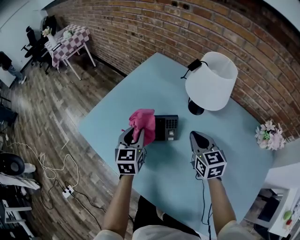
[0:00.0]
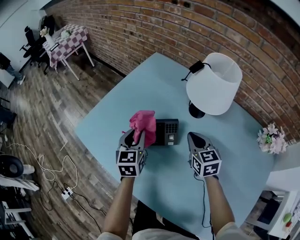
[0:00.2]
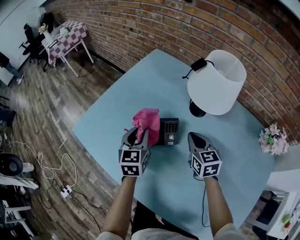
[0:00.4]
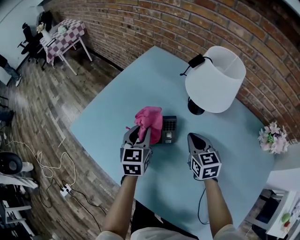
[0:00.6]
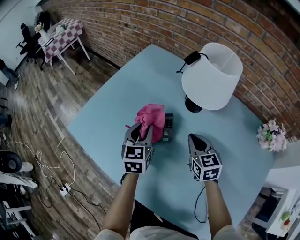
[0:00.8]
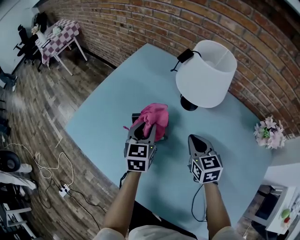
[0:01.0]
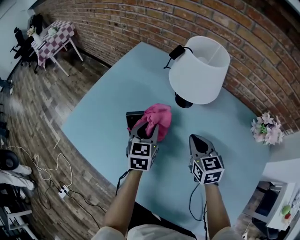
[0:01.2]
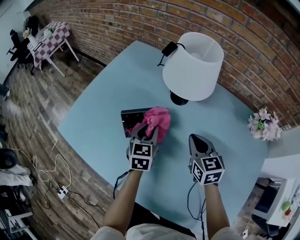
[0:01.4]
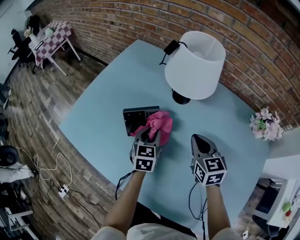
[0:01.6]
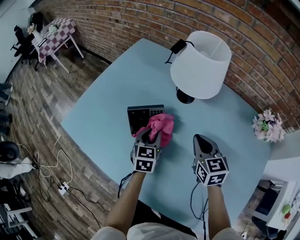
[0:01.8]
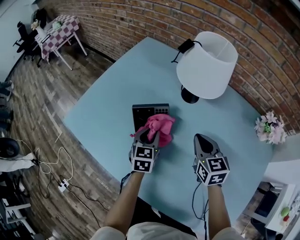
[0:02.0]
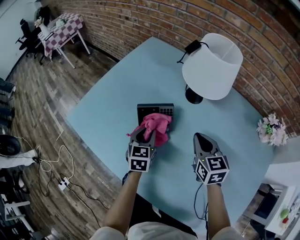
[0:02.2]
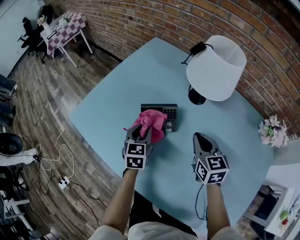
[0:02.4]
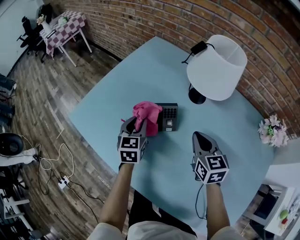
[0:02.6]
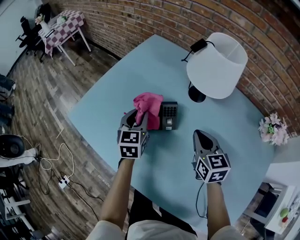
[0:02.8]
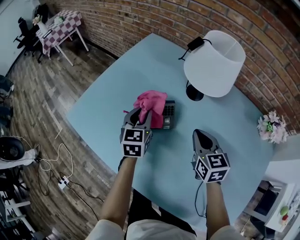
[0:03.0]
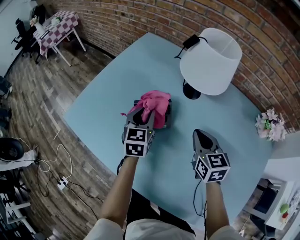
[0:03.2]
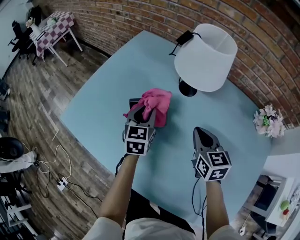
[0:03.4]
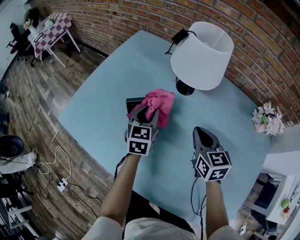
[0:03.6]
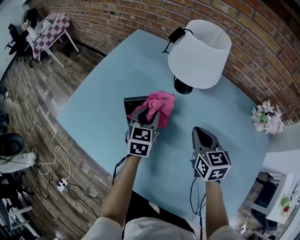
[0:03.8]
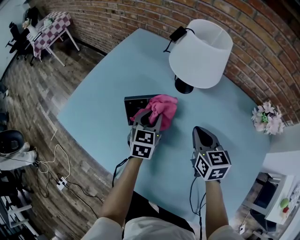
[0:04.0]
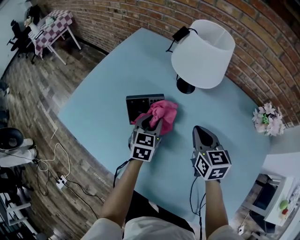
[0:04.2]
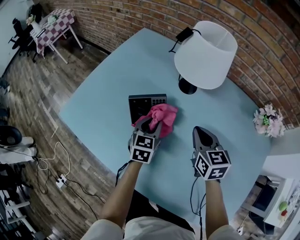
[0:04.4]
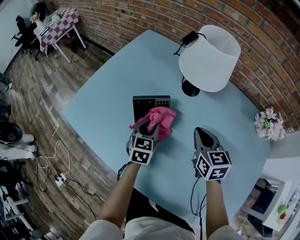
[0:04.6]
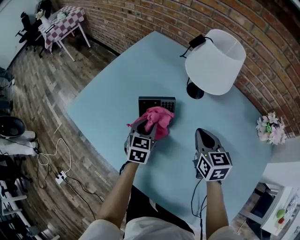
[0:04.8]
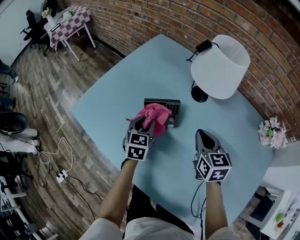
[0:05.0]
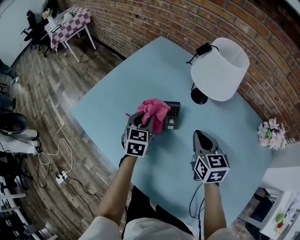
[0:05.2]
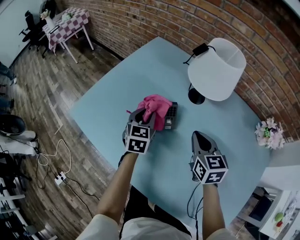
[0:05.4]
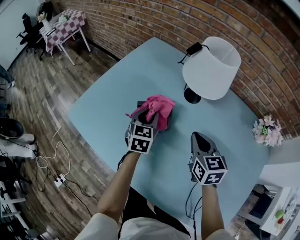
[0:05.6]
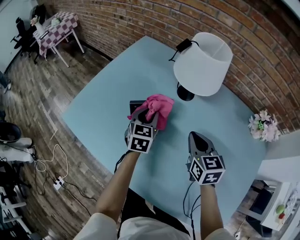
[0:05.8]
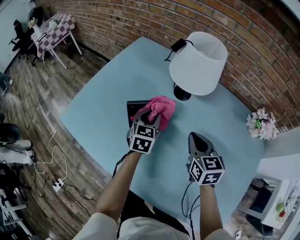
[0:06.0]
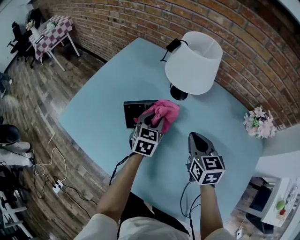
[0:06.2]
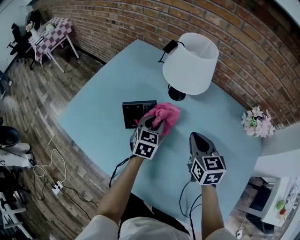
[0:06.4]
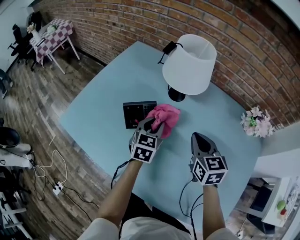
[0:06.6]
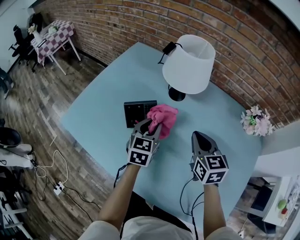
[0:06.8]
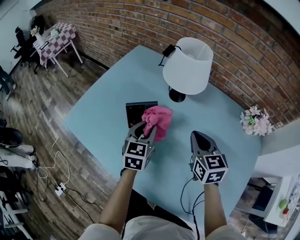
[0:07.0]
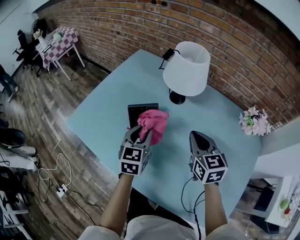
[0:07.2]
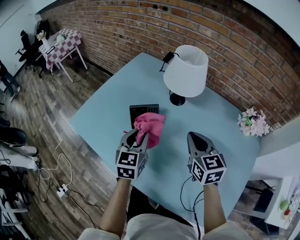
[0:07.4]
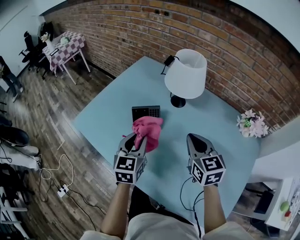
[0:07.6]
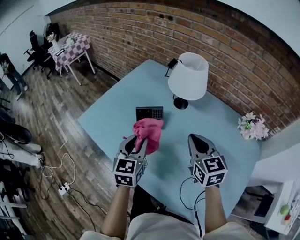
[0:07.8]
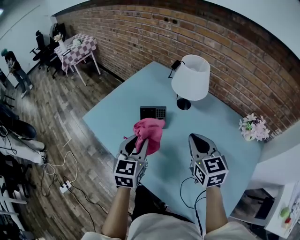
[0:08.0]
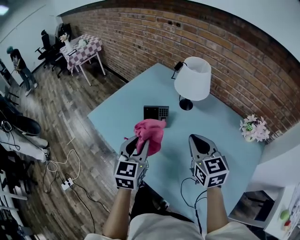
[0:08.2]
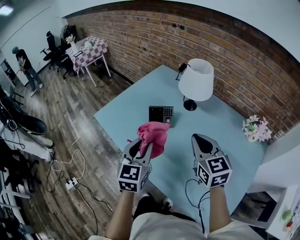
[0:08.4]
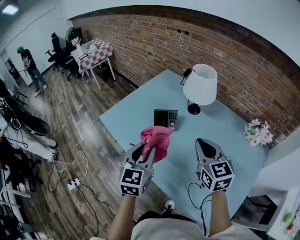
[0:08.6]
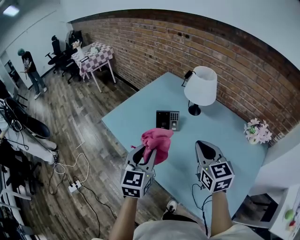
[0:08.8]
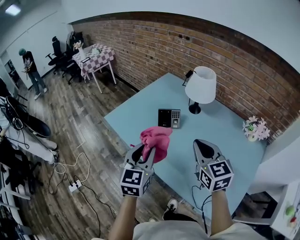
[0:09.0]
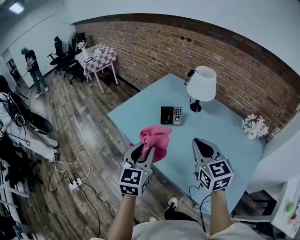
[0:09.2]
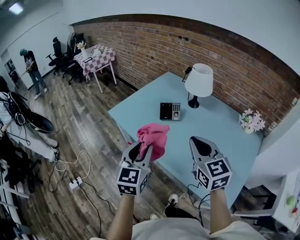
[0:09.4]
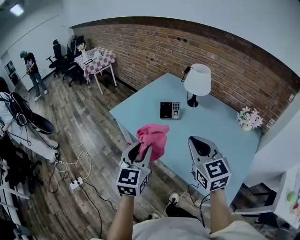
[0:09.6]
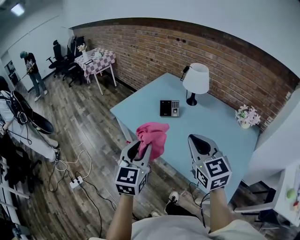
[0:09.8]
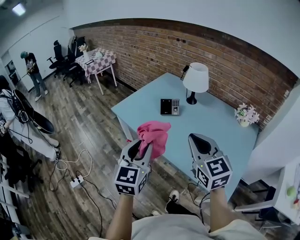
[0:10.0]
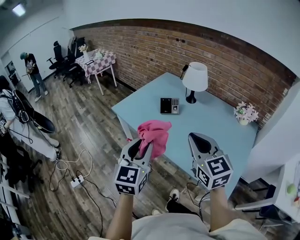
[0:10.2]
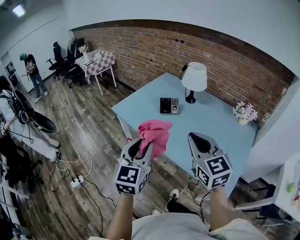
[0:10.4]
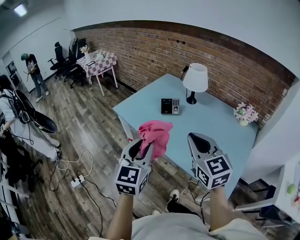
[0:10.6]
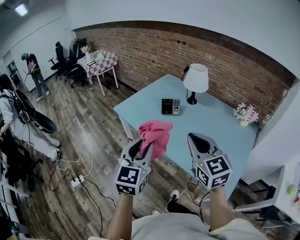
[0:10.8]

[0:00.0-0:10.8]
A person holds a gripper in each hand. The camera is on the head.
0.0 to 1.6 s: The right gripper is displaced to the right by roughly 10 cm. Meanwhile the left gripper travels to the right and downward by about 20 cm.
1.6 to 3.0 s: The right gripper is displaced to the left by about 5 cm. The left gripper is displaced to the left and upward by roughly 10 cm.
3.0 to 4.6 s: The left gripper travels downward and to the right by about 10 cm.
4.6 to 6.2 s: The left gripper moves to the right, roughly 5 cm.
6.2 to 7.8 s: The right gripper shifts approximately 15 cm upward and backward. The left gripper goes roughly 25 cm backward, upward and to the left.
7.8 to 9.2 s: The grippers both shift backward, upward and to the left by about 25 cm.
9.2 to 10.8 s: Both grippers move backward, about 15 cm.

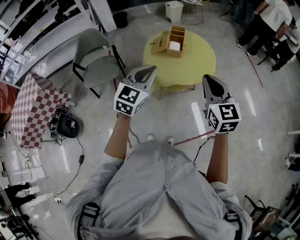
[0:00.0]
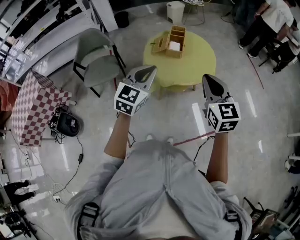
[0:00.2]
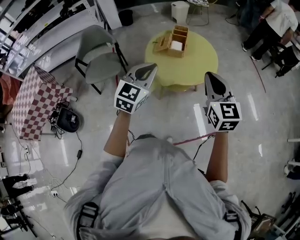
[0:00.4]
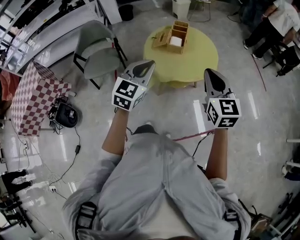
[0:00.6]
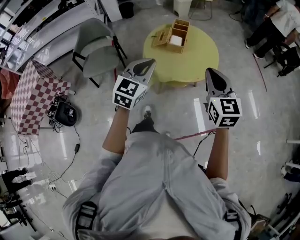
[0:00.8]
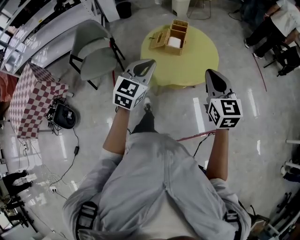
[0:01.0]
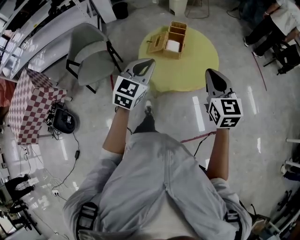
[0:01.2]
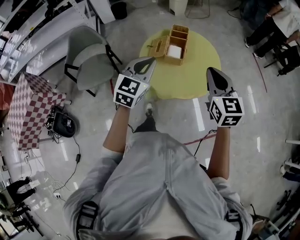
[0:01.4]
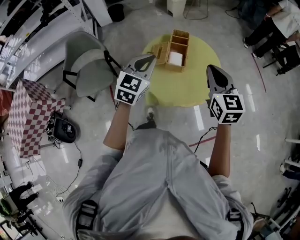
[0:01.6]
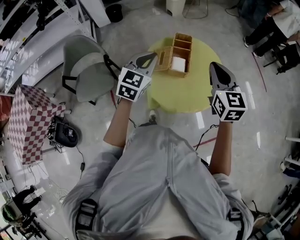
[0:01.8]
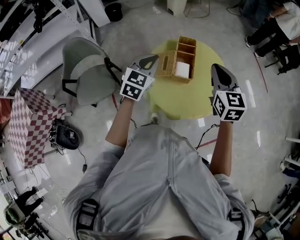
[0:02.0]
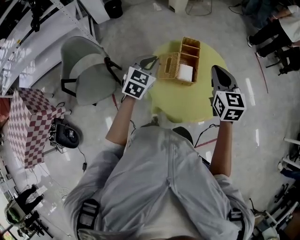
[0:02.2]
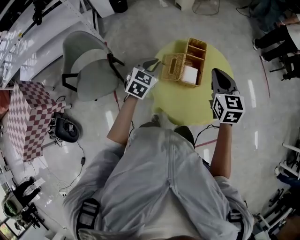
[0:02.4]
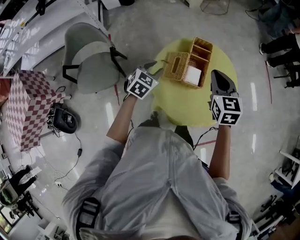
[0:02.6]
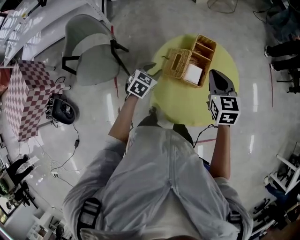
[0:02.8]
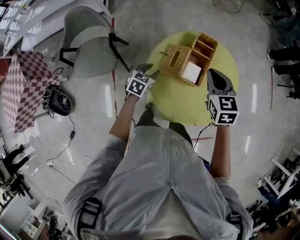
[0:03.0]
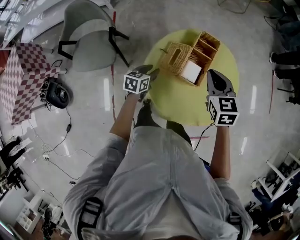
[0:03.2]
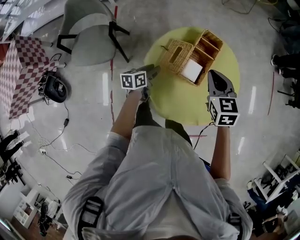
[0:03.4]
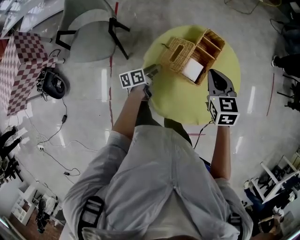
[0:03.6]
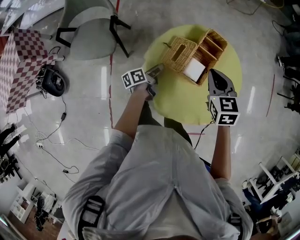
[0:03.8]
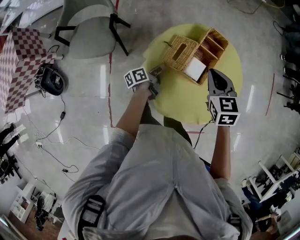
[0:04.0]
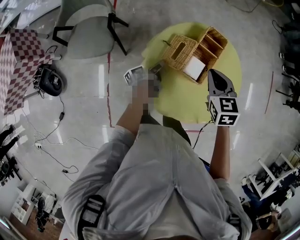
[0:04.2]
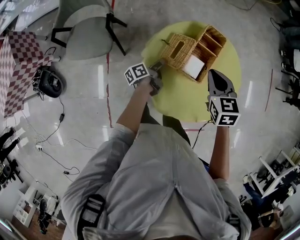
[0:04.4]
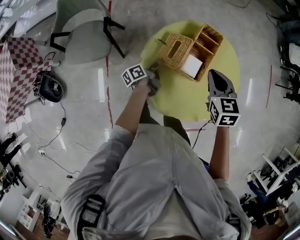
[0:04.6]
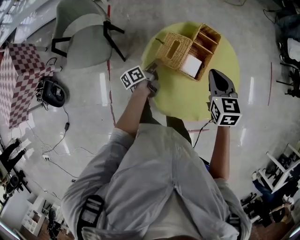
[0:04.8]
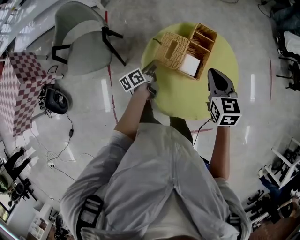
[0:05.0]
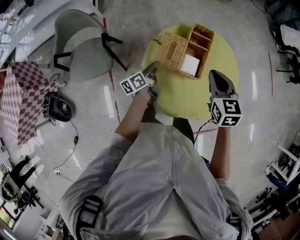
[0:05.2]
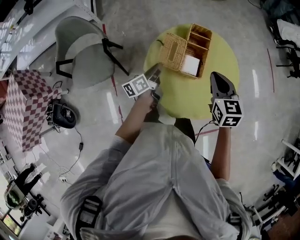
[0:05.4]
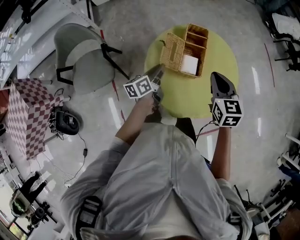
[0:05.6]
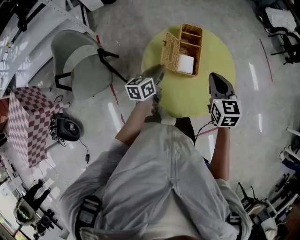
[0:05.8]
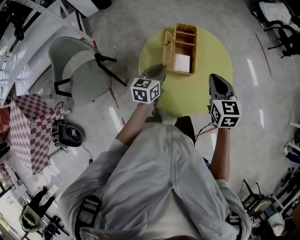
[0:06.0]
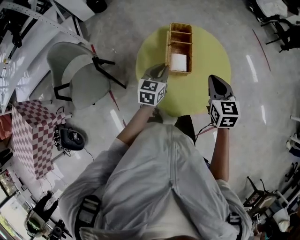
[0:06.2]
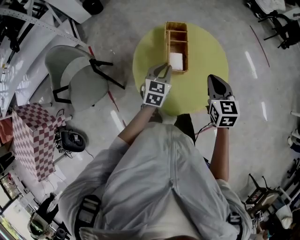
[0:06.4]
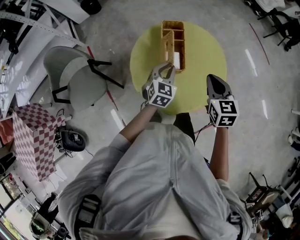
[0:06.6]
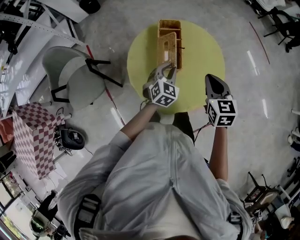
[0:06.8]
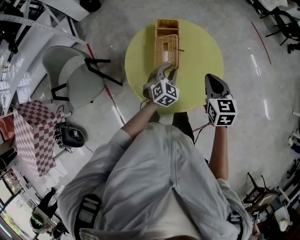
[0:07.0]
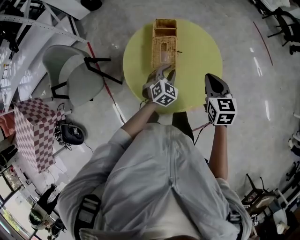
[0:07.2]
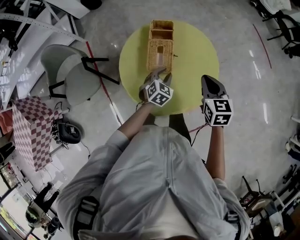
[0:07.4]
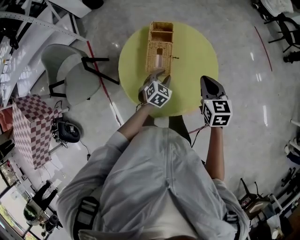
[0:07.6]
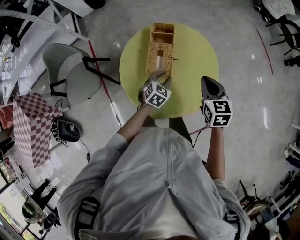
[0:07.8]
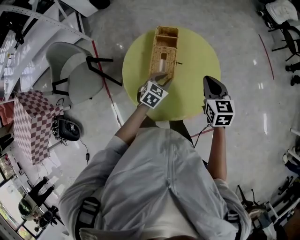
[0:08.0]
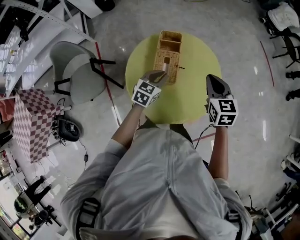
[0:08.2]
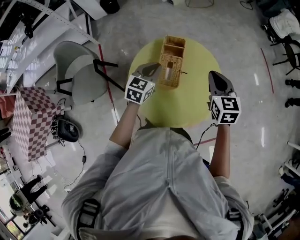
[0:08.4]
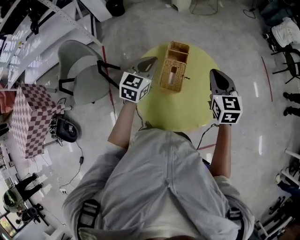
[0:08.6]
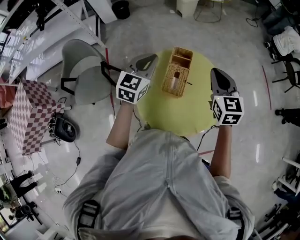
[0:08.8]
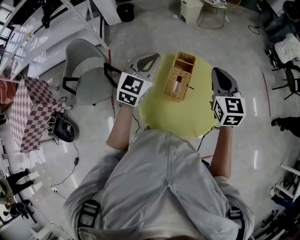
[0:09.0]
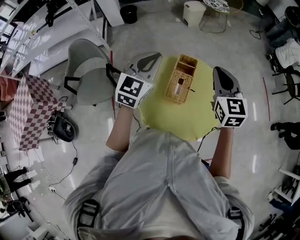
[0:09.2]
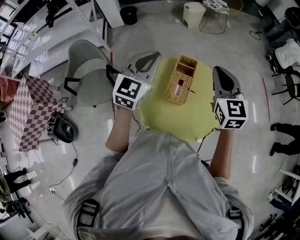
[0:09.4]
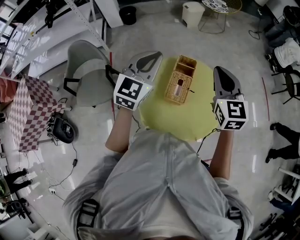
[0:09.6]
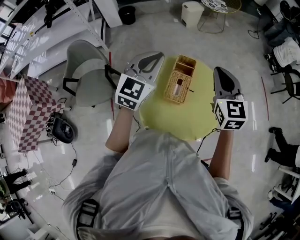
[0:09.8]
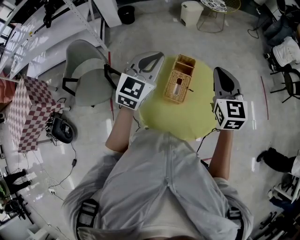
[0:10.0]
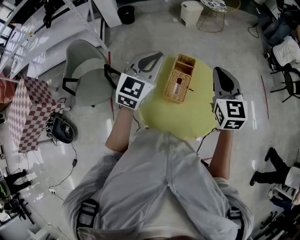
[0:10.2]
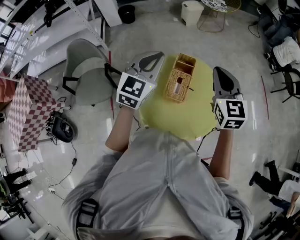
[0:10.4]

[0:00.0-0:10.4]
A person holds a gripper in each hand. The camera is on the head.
0.0 to 1.4 s: The two grippers go some 20 cm forward.
1.4 to 3.0 s: The right gripper travels forward, downward and to the left by approximately 30 cm, and changes its angle by approximately 20 degrees, while the left gripper shifts roughly 35 cm downward and forward, points its fingers about 30 degrees further downward, and opens up.
3.0 to 4.4 s: The right gripper shifts approximately 5 cm downward; the left gripper moves downward, about 10 cm, and rotates around the line of its fingers by some 80 degrees, counterclockwise from behind.
4.4 to 6.0 s: The right gripper goes some 10 cm backward and to the right, and rotates some 30 degrees. Meanwhile the left gripper is displaced upward by some 15 cm, and rotates around the line of its fingers by about 70 degrees, clockwise from behind.
6.0 to 7.4 s: The left gripper is displaced to the right and downward by roughly 20 cm, and changes its angle by some 50 degrees. Meanwhile the right gripper goes about 10 cm to the right.
7.4 to 9.0 s: The left gripper moves upward and to the left, roughly 35 cm, tips its fingers upward by roughly 30 degrees, and closes its fingers. Meanwhile the right gripper goes about 20 cm upward, forward and to the left, and swivels roughly 30 degrees.
9.0 to 10.4 s: The grippers make only small movements.

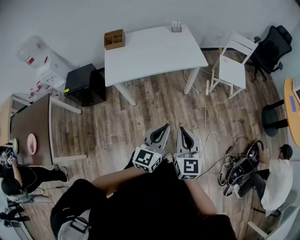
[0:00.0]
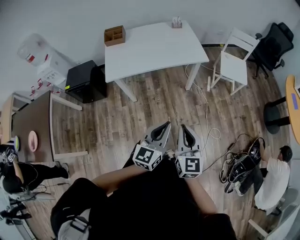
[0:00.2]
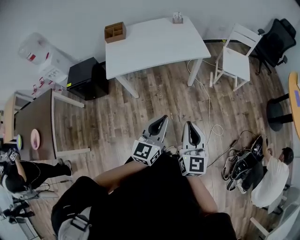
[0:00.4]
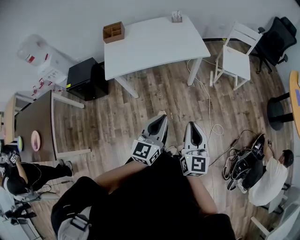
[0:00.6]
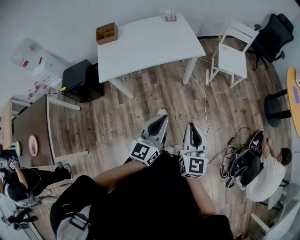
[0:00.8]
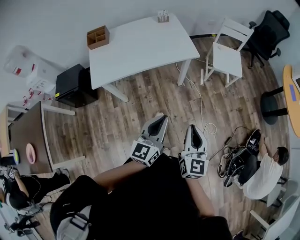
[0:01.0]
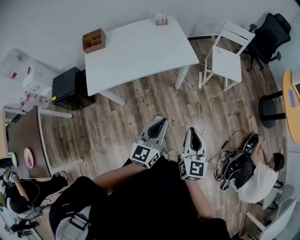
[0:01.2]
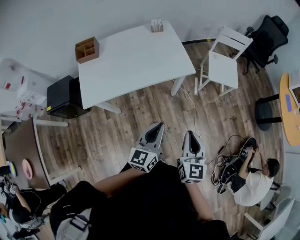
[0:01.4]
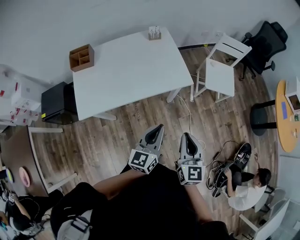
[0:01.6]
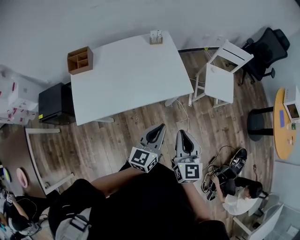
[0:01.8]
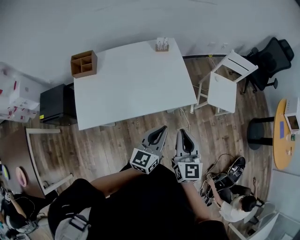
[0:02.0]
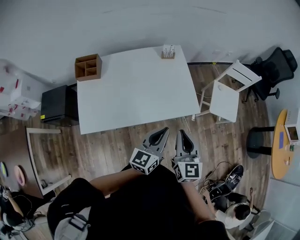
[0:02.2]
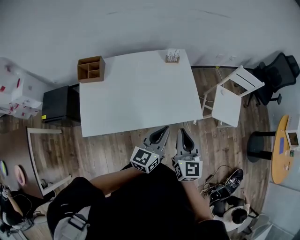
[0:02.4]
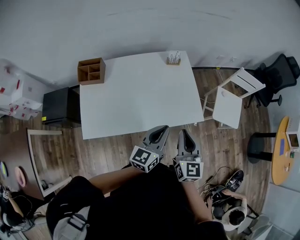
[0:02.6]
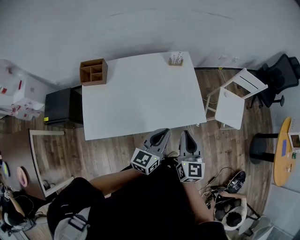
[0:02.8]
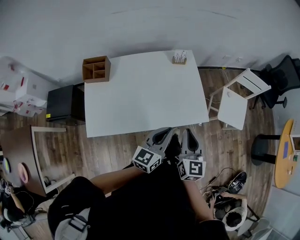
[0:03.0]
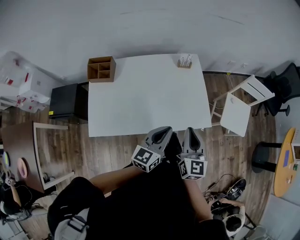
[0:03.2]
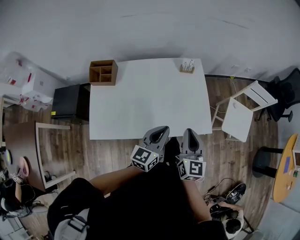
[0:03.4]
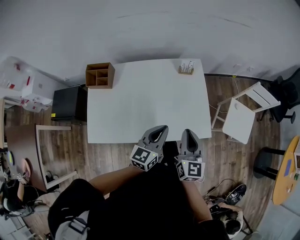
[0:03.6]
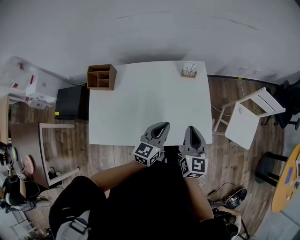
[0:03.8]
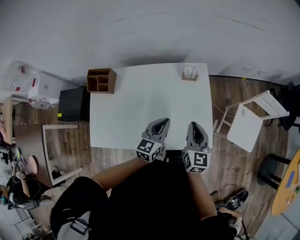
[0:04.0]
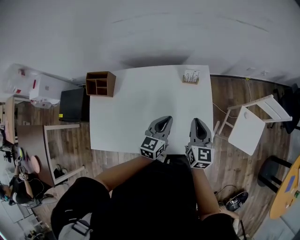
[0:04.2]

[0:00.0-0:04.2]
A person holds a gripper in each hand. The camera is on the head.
0.0 to 1.4 s: Both grippers move forward, roughly 20 cm.
1.4 to 2.8 s: The right gripper heads forward and to the left, covering roughly 35 cm. Meanwhile the left gripper goes approximately 25 cm forward.
2.8 to 4.2 s: The grippers both shift forward by about 25 cm.
